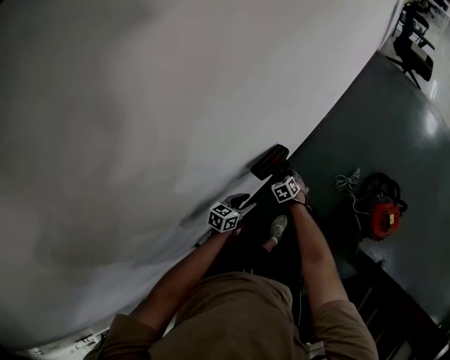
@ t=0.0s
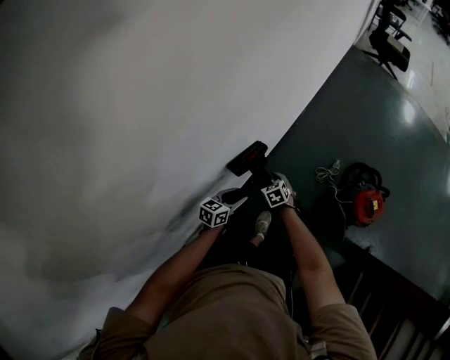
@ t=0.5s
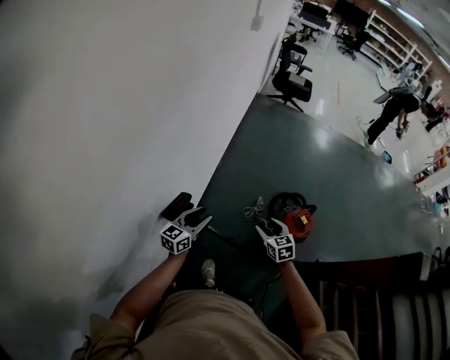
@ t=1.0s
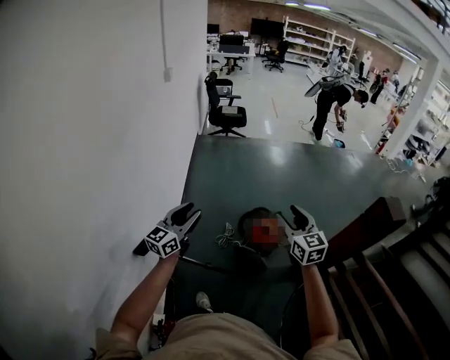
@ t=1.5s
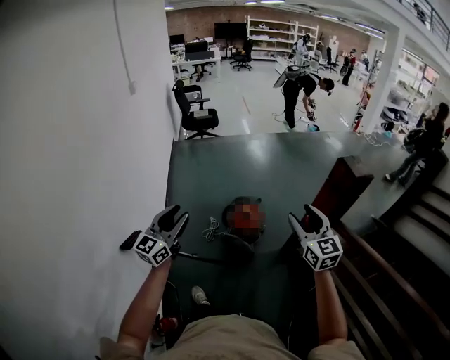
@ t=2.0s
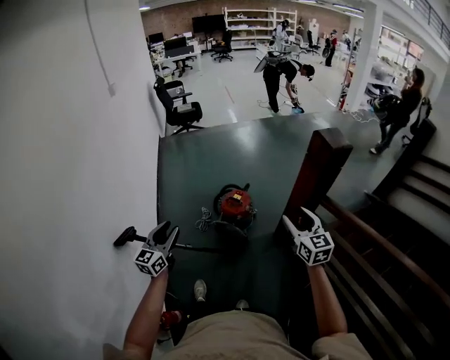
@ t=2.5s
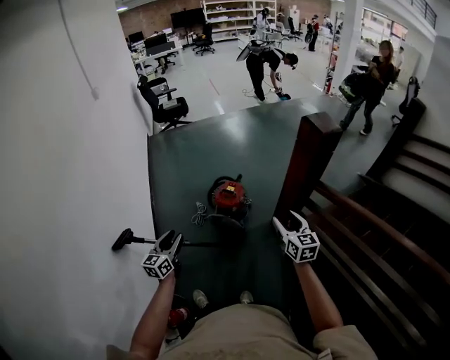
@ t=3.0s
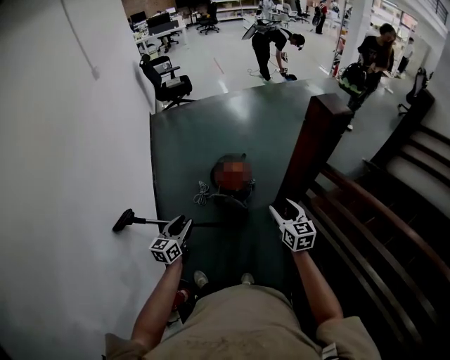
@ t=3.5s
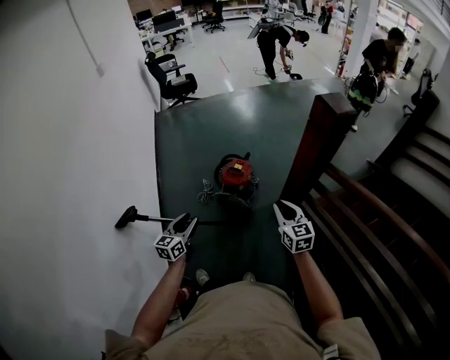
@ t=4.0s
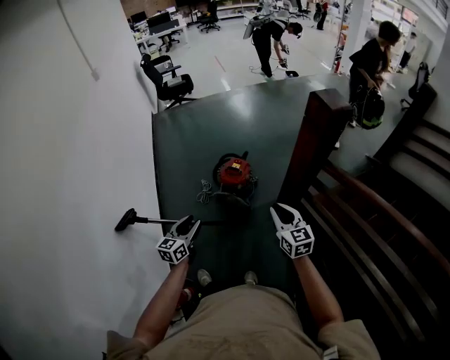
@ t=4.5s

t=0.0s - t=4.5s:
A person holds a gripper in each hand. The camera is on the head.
t=0.0s - t=2.0s: The left gripper heads upward, covering about 50 cm, and angles its fingers upward, by some 50 degrees; the right gripper ends up roughly 1 m from where it was, and points its fingers about 50 degrees further upward.
t=2.0s - t=4.5s: The right gripper is displaced downward and backward by some 20 cm, and closes its fingers. The left gripper moves downward and to the right, some 25 cm, and turns by approximately 30 degrees.

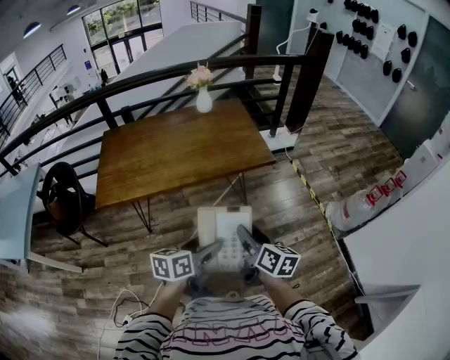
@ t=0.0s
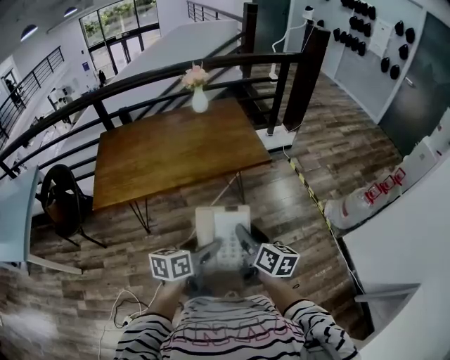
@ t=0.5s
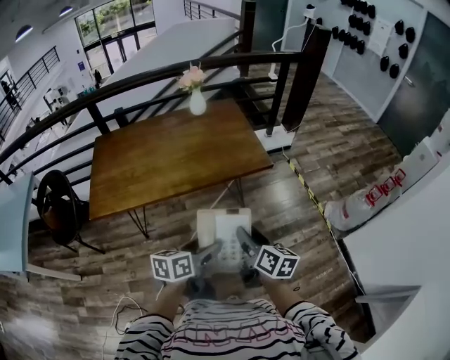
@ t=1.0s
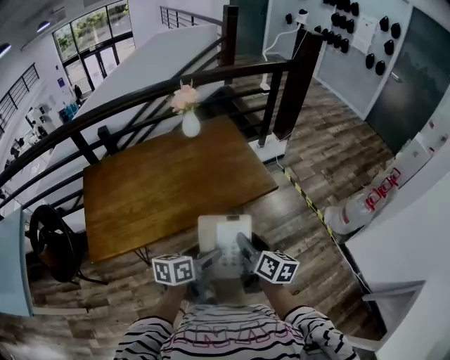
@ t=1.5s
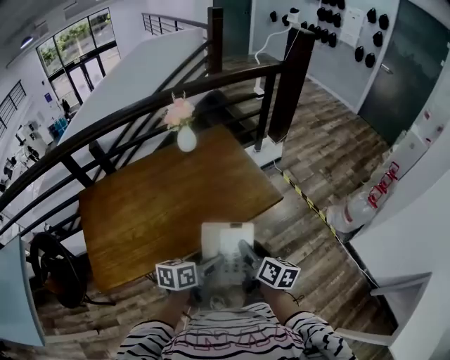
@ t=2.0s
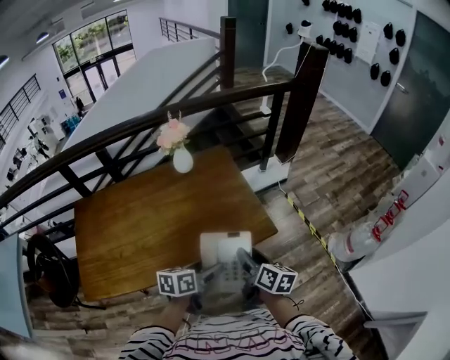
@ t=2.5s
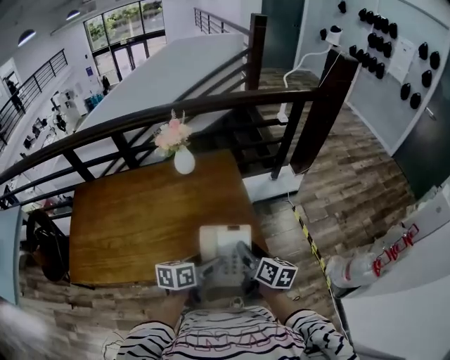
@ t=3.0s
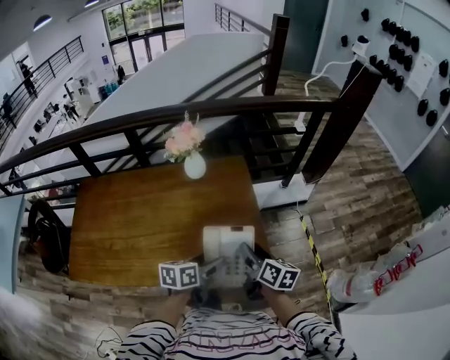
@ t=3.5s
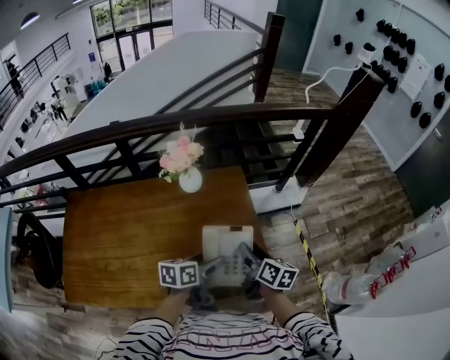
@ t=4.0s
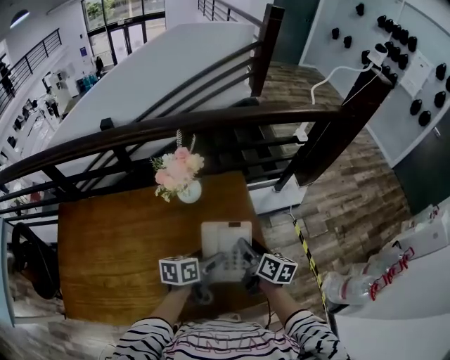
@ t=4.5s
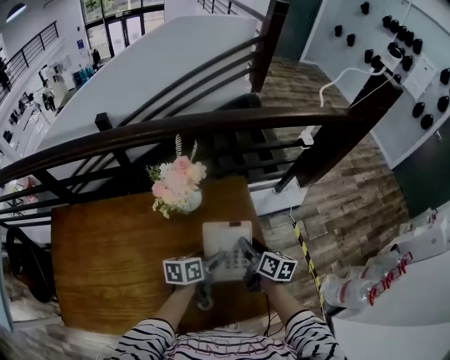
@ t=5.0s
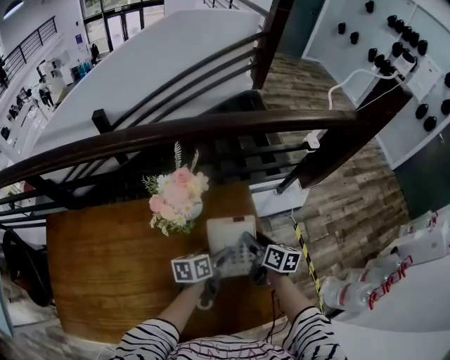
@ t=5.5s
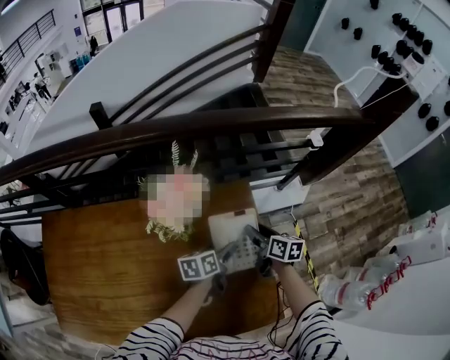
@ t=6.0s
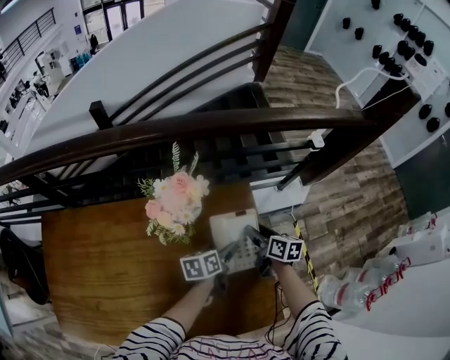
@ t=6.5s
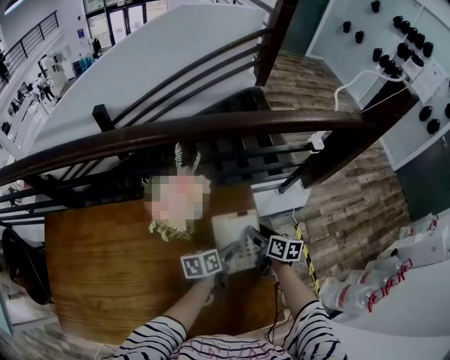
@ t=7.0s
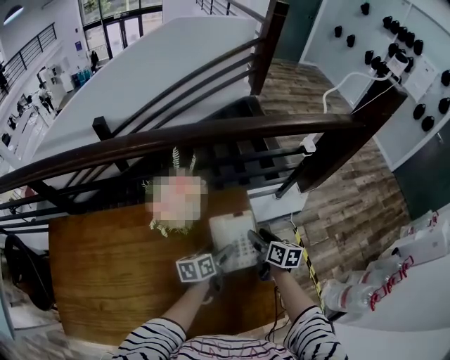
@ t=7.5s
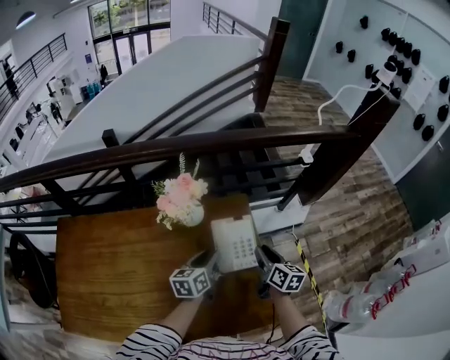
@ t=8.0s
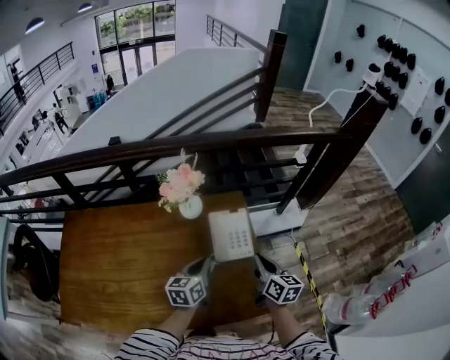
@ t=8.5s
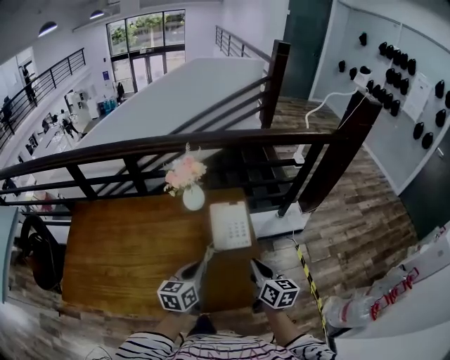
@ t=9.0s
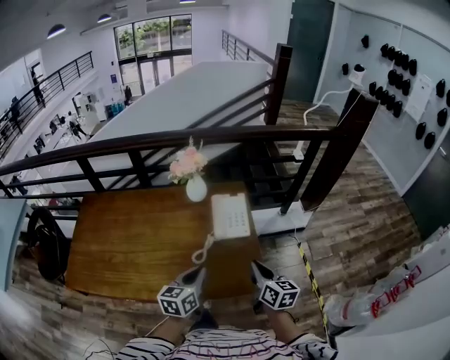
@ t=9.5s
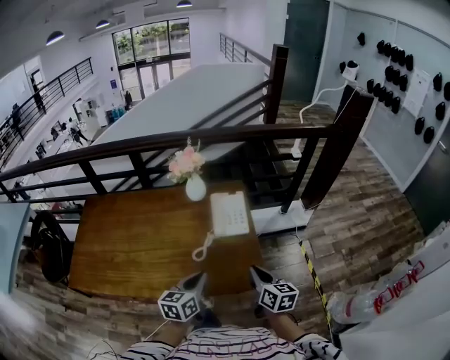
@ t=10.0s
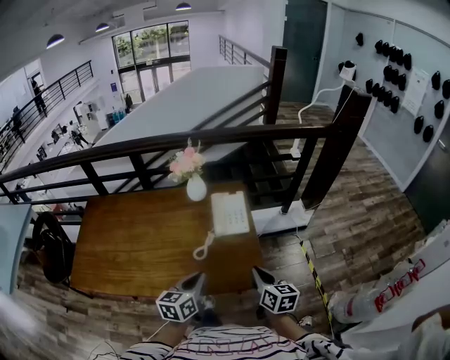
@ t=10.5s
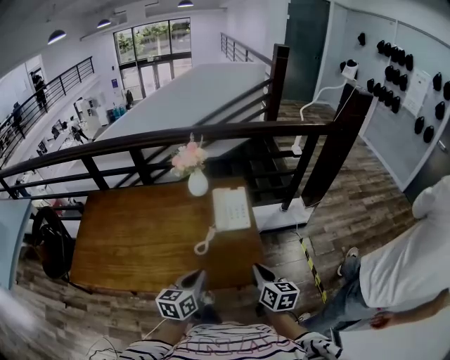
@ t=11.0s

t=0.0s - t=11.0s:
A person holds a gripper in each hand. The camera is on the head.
t=0.0s - t=2.0s: The grippers both shift forward and to the left by approximately 30 cm.
t=2.0s - t=3.5s: The left gripper shifts roughly 30 cm forward and to the right; the right gripper travels forward by about 30 cm, and rotates about 20 degrees.
t=3.5s - t=5.5s: The grippers both shift forward by roughly 35 cm.
t=5.5s - t=7.5s: The grippers make only small movements.
t=7.5s - t=9.0s: Both grippers move backward and upward, approximately 30 cm. The left gripper swivels about 30 degrees, and closes up; the right gripper closes.
t=9.0s - t=11.0s: The two grippers go some 15 cm backward.

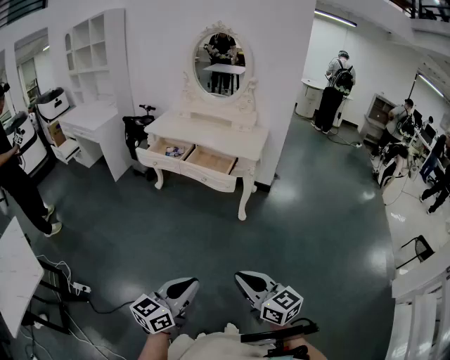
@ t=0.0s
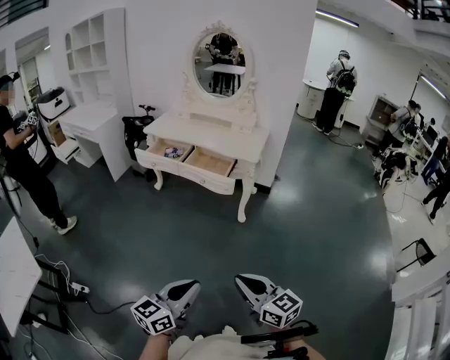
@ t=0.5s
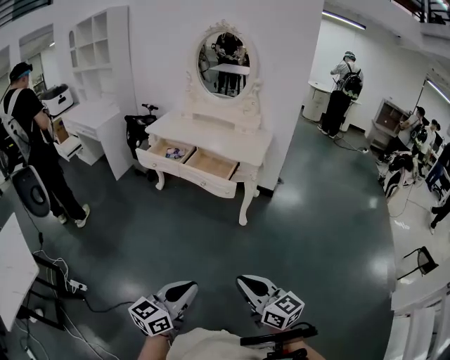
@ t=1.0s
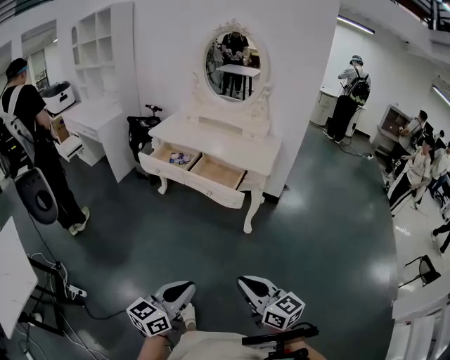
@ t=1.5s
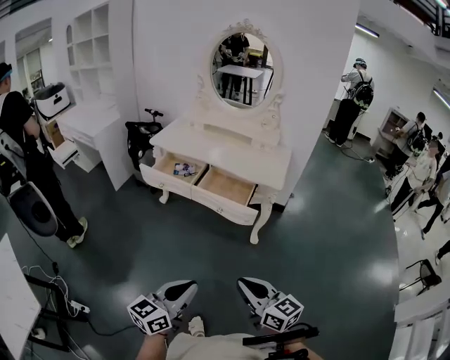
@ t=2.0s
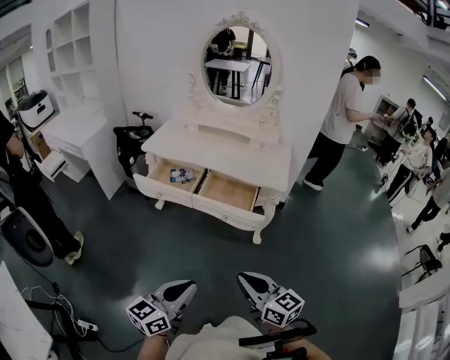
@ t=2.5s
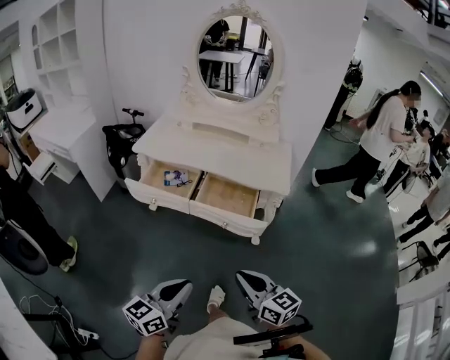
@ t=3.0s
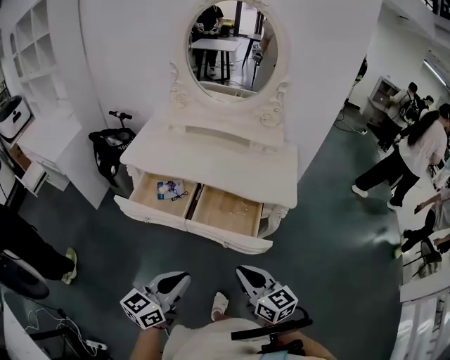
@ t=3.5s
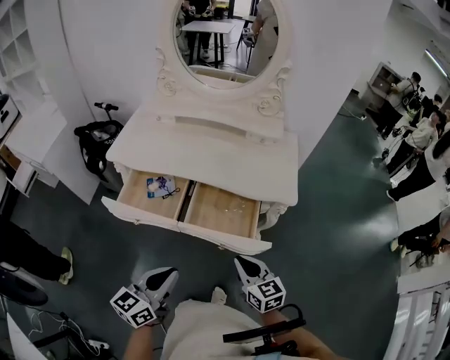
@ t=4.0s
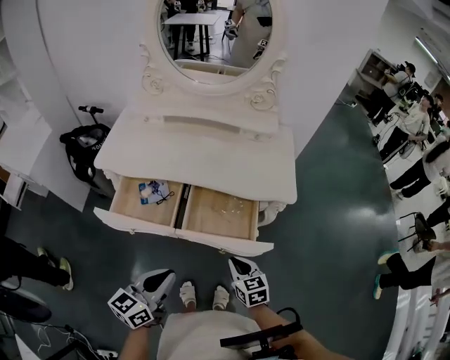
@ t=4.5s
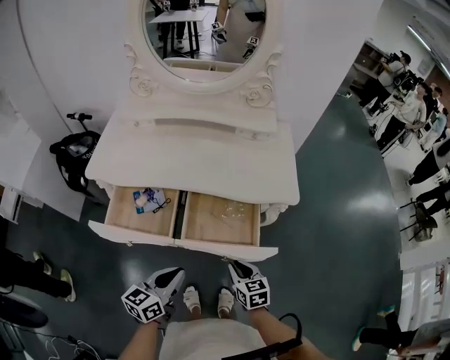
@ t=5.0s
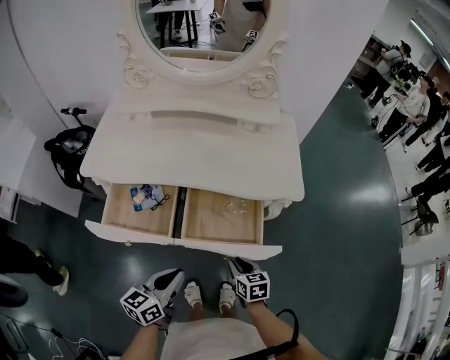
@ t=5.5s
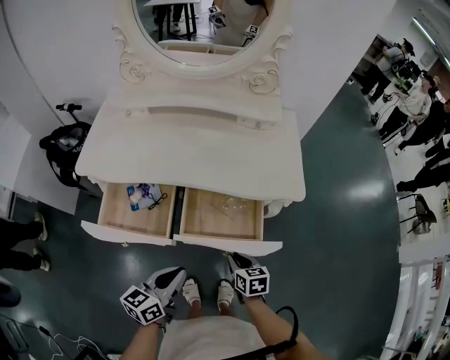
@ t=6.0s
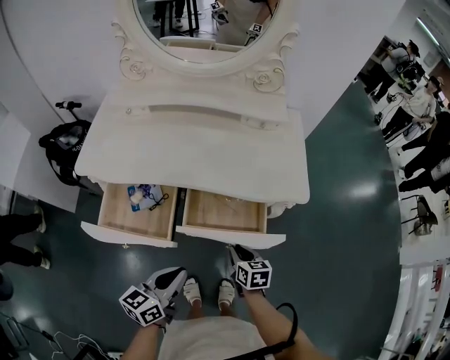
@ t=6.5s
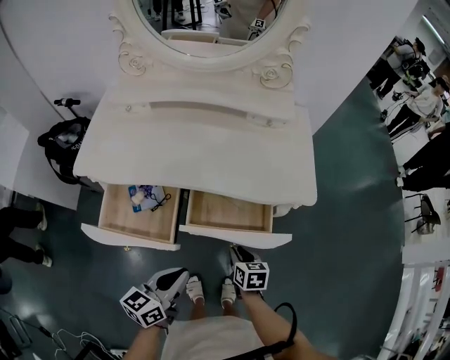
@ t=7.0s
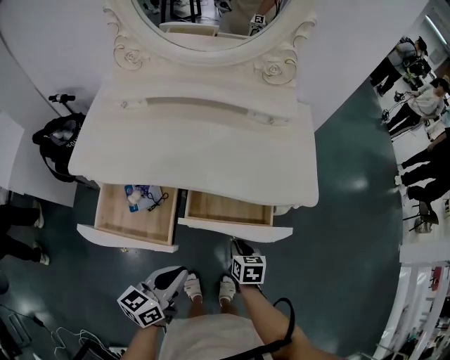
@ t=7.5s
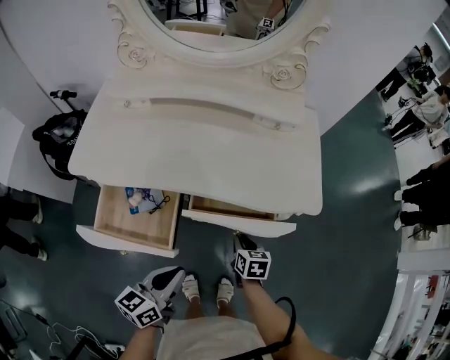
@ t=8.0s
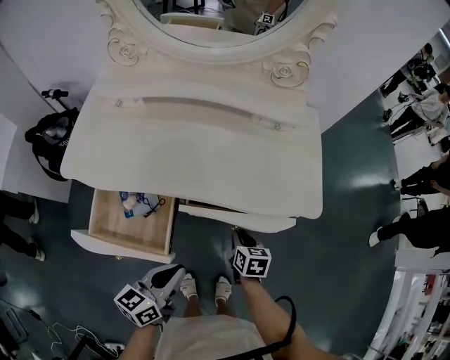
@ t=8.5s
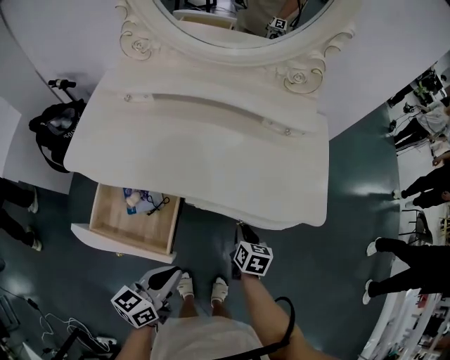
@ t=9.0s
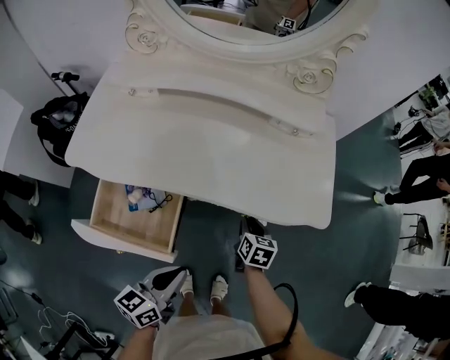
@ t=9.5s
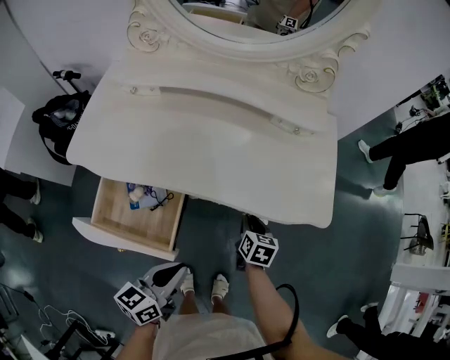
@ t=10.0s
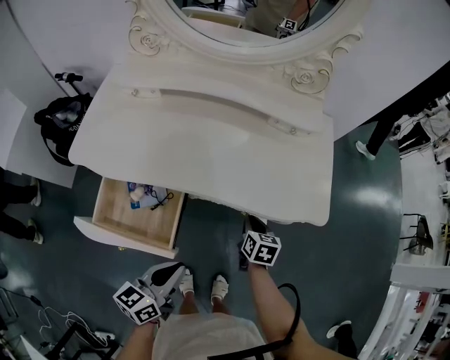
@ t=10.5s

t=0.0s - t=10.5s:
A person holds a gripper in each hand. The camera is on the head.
t=0.0s - t=2.0s: Both grippers travel together forward, roughly 25 cm.
t=2.0s - t=4.0s: The pair of grippers is taken forward, roughly 40 cm. The right gripper swivels roughly 30 degrees.
t=4.0s - t=6.5s: The left gripper shifts approximately 15 cm forward and downward. The right gripper travels downward and forward by approximately 20 cm, and swivels roughly 30 degrees.
t=6.5s - t=8.5s: The grippers both shift forward by approximately 10 cm.
t=8.5s - t=10.5s: The right gripper goes roughly 5 cm forward.

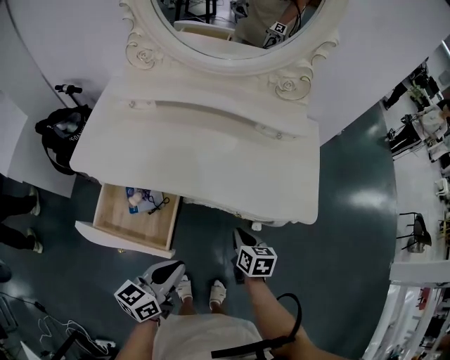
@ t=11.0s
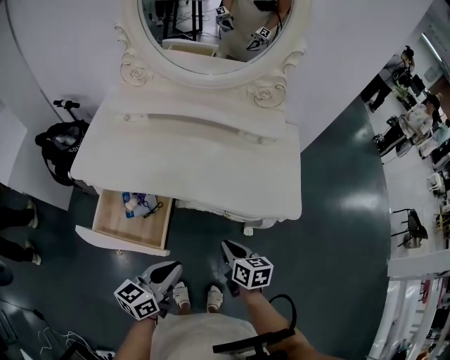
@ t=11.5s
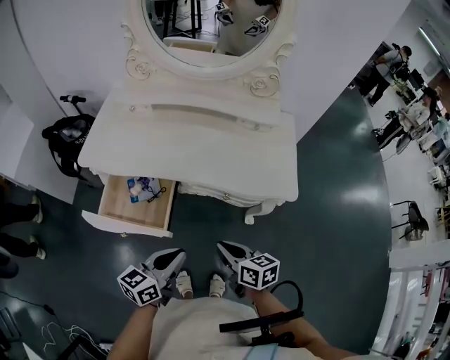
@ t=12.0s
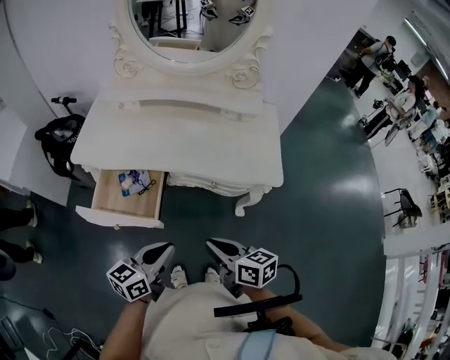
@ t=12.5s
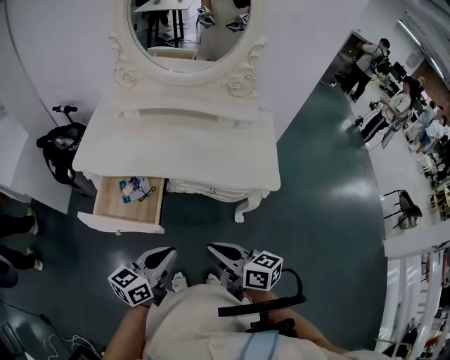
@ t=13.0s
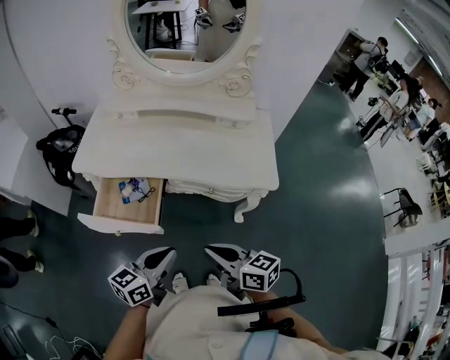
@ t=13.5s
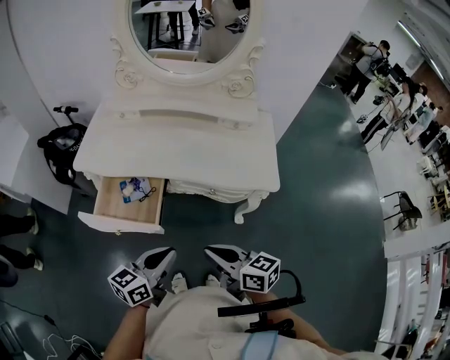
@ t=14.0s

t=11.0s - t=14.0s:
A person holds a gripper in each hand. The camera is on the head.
t=11.0s - t=12.5s: The right gripper moves backward and upward, roughly 25 cm, and swivels some 30 degrees; the left gripper goes some 10 cm backward and upward.
t=12.5s - t=14.0s: The grippers make only small movements.
